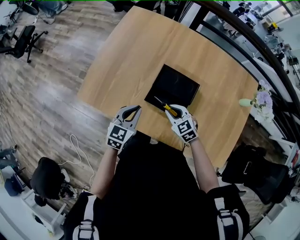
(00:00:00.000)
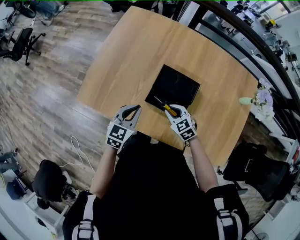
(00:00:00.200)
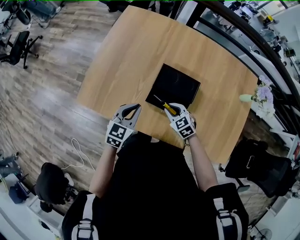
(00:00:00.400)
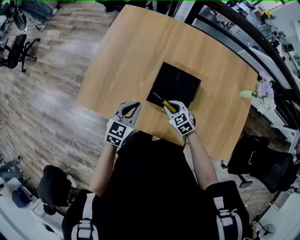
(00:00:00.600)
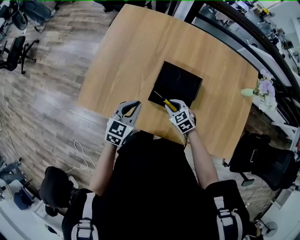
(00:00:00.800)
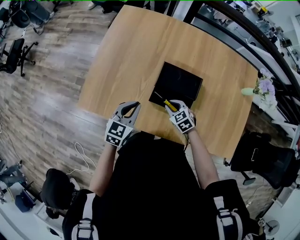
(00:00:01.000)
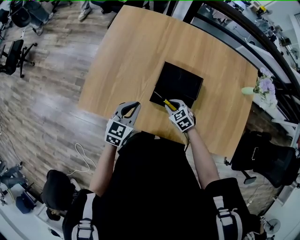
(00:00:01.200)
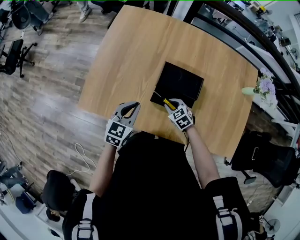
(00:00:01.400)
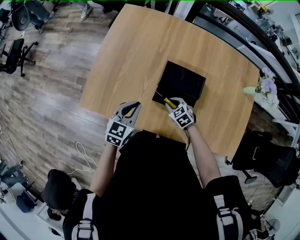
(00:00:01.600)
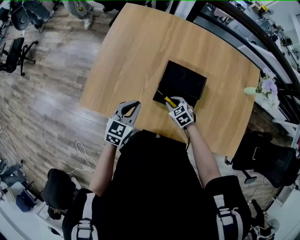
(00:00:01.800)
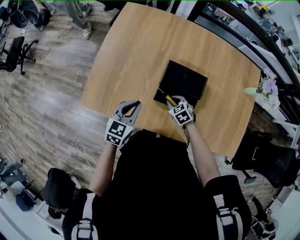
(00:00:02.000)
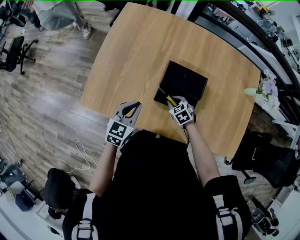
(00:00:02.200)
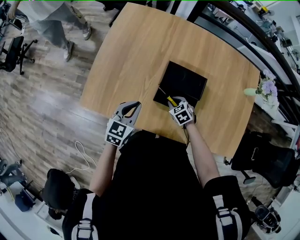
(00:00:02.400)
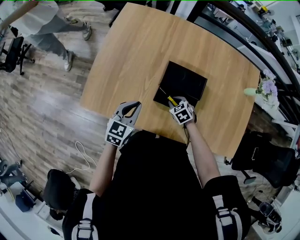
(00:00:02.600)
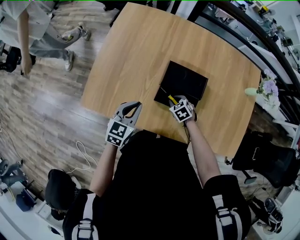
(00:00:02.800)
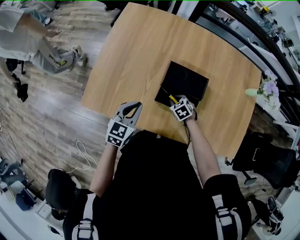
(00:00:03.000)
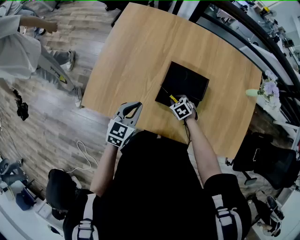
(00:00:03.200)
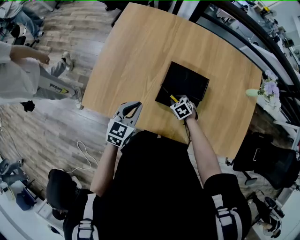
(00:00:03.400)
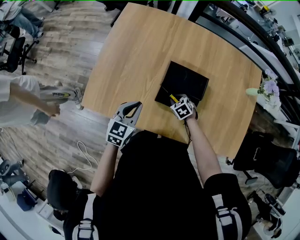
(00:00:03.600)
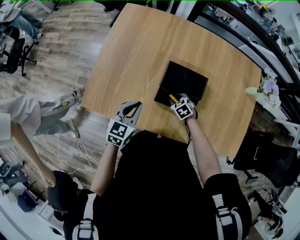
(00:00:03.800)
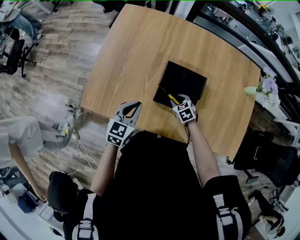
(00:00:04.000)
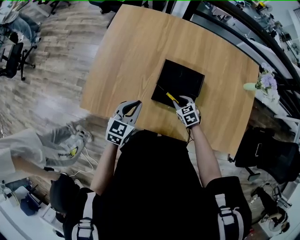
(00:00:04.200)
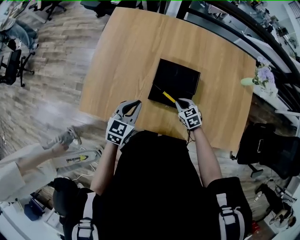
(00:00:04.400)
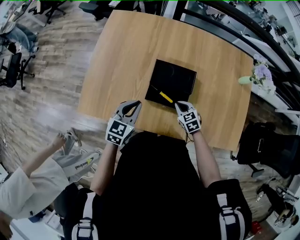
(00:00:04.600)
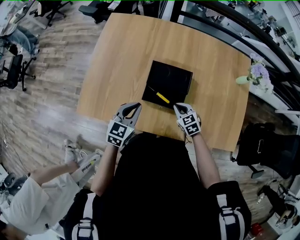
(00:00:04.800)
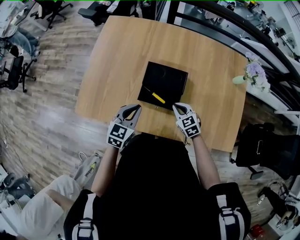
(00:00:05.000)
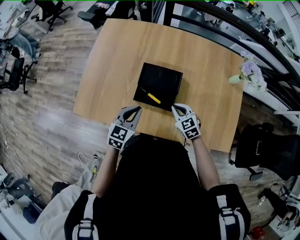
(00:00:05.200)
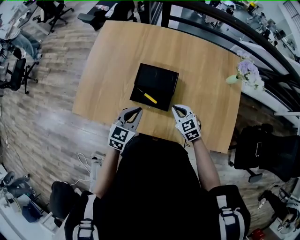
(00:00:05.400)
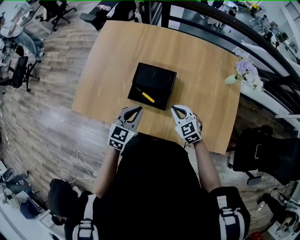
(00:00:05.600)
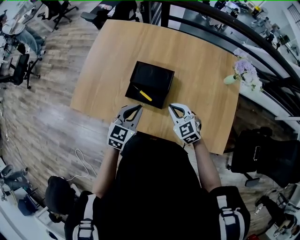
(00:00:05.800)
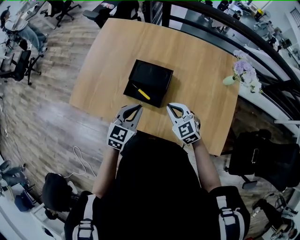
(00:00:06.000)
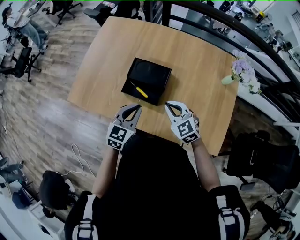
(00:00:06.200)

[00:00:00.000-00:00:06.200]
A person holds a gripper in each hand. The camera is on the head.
00:00:00.000 to 00:00:01.600: The right gripper moves downward, roughly 10 cm. The left gripper ends up some 5 cm from where it was.
00:00:01.600 to 00:00:03.200: The right gripper moves some 5 cm.
00:00:03.200 to 00:00:04.600: The right gripper goes about 10 cm to the right and upward, and changes its angle by approximately 20 degrees; the left gripper travels to the right by roughly 5 cm.
00:00:04.600 to 00:00:06.200: The left gripper shifts roughly 20 cm to the right and backward. The right gripper travels upward and to the right by some 20 cm, and rotates some 30 degrees.

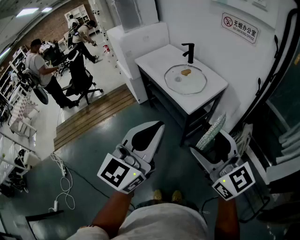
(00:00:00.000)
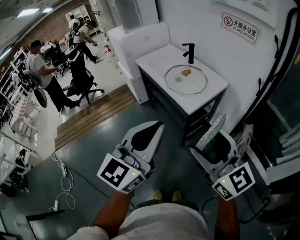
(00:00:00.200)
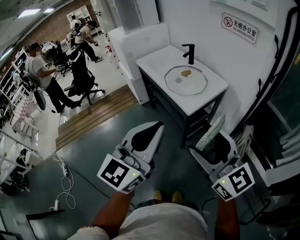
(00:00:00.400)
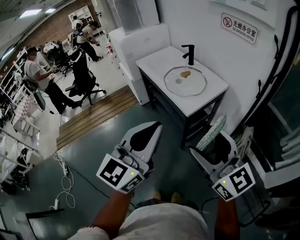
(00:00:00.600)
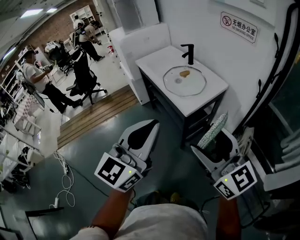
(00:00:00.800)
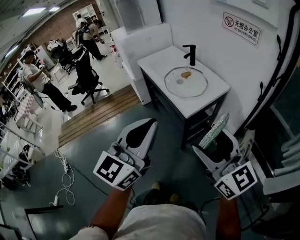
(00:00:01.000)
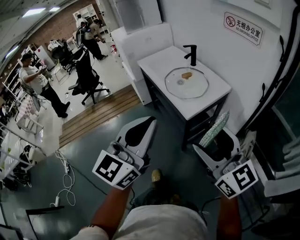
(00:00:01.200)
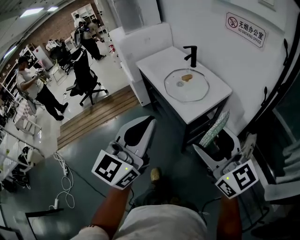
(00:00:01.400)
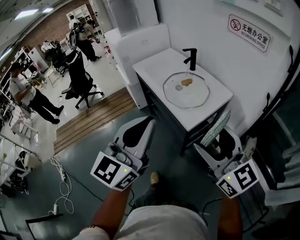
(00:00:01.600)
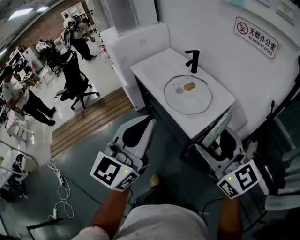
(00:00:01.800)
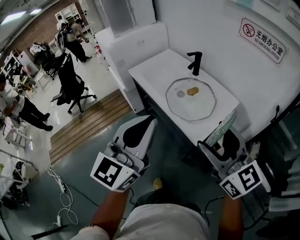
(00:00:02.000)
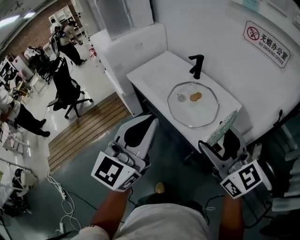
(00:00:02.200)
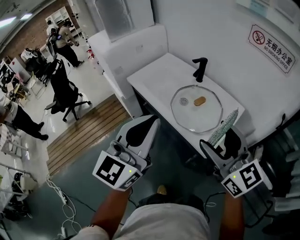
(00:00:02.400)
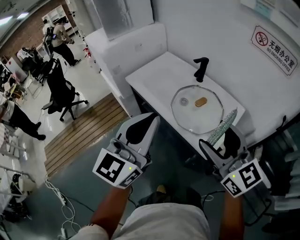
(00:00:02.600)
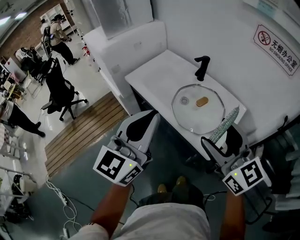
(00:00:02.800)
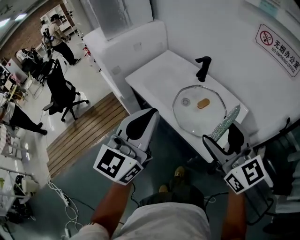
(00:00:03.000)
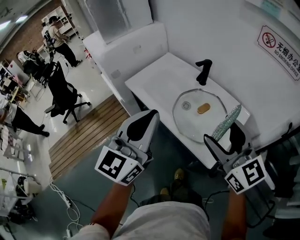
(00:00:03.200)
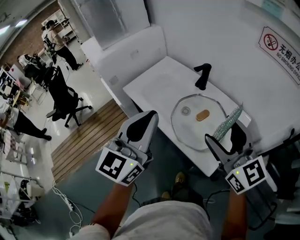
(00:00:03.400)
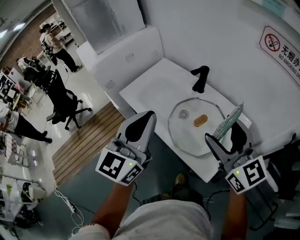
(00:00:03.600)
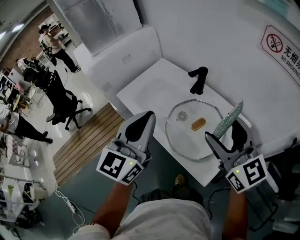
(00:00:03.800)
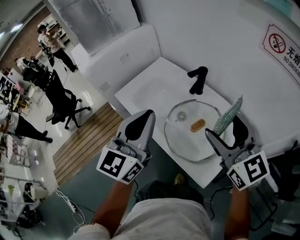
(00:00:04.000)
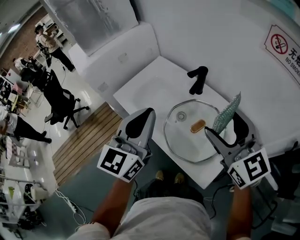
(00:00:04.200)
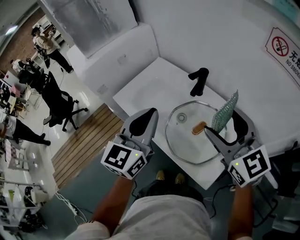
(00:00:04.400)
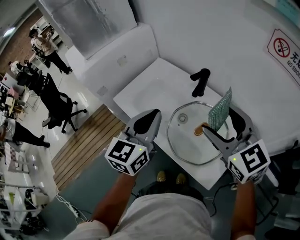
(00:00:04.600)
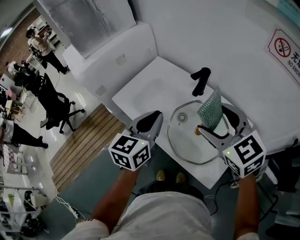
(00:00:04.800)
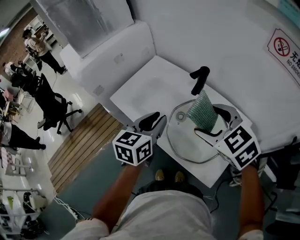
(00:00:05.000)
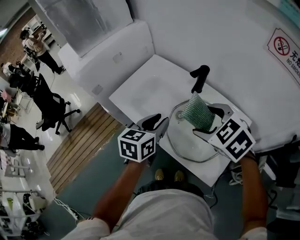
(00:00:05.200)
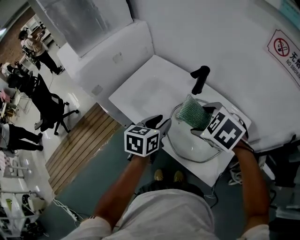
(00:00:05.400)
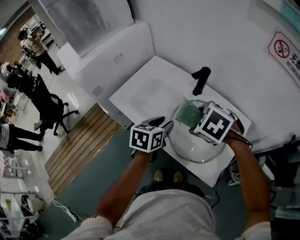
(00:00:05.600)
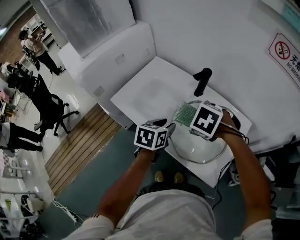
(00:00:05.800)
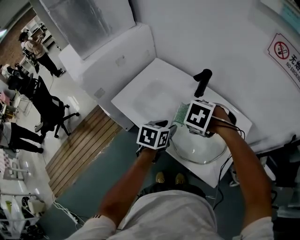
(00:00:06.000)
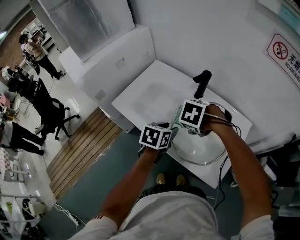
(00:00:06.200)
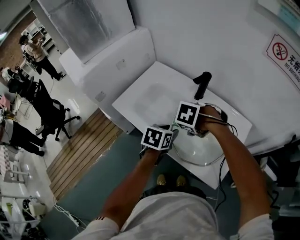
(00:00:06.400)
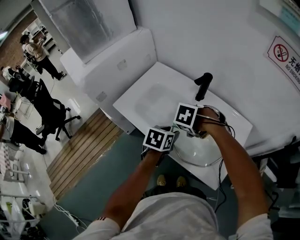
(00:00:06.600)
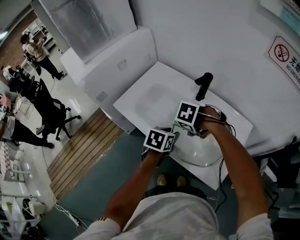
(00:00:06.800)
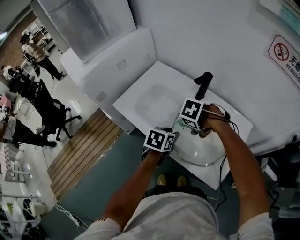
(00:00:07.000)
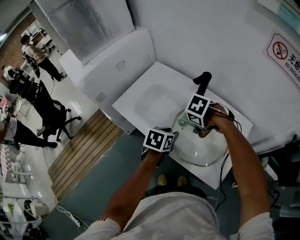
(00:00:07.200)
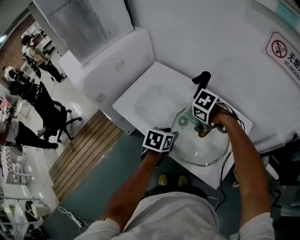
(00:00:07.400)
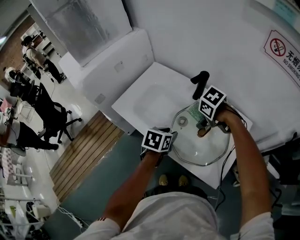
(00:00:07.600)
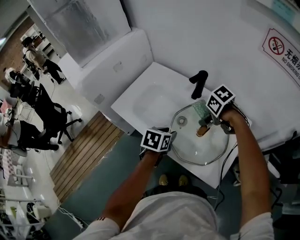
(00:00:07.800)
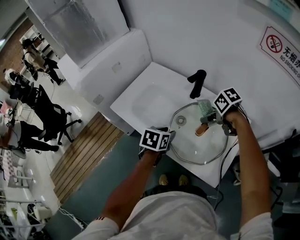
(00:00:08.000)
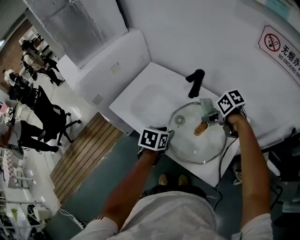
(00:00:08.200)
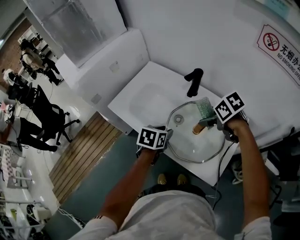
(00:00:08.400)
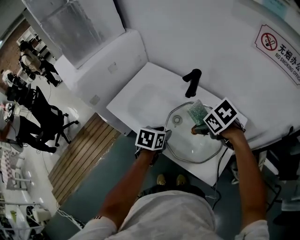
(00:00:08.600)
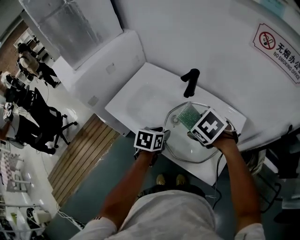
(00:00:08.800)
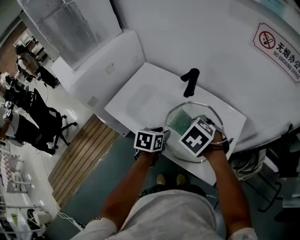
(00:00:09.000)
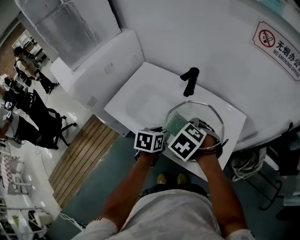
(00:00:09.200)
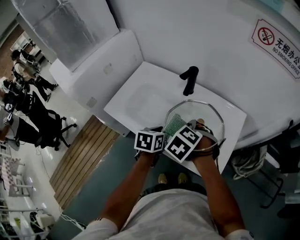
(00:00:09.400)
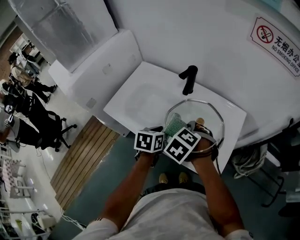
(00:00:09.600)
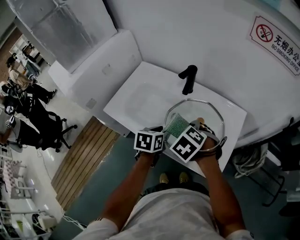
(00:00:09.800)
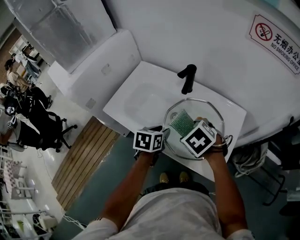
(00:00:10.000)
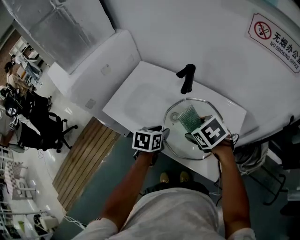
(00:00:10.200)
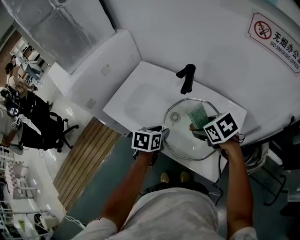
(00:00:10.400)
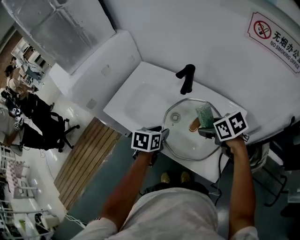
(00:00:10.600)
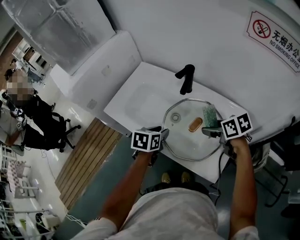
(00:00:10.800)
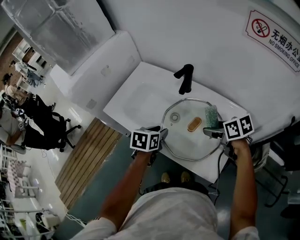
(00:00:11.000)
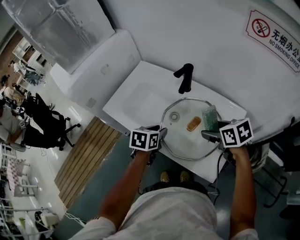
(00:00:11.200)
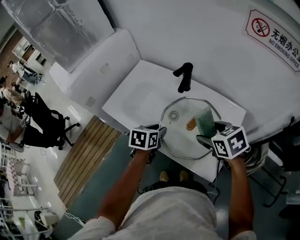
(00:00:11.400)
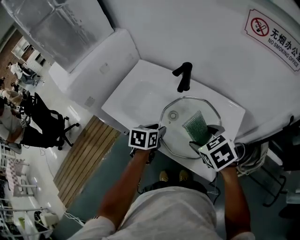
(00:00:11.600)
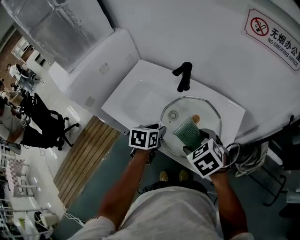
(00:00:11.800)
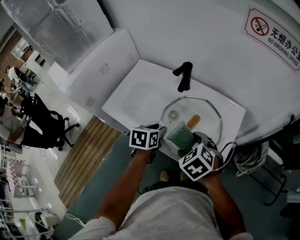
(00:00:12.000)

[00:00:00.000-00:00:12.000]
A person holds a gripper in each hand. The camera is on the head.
00:00:00.000 to 00:00:01.600: Both grippers travel together forward, some 10 cm.
00:00:01.600 to 00:00:03.000: The two grippers go approximately 25 cm forward and to the left.
00:00:03.000 to 00:00:04.400: Both grippers move forward, roughly 20 cm.
00:00:04.400 to 00:00:06.000: The grippers both shift downward by roughly 20 cm. The right gripper tips its fingers downward by some 70 degrees. Meanwhile the left gripper angles its fingers downward, by some 40 degrees, and opens its fingers.
00:00:06.000 to 00:00:07.600: The right gripper moves about 10 cm, and turns by approximately 30 degrees.
00:00:07.600 to 00:00:09.000: The right gripper shifts by some 10 cm, and turns by about 30 degrees.
00:00:09.000 to 00:00:10.400: The right gripper shifts roughly 5 cm to the right, and swivels about 30 degrees.
00:00:10.400 to 00:00:12.000: The right gripper travels backward and to the left by some 10 cm, and changes its angle by about 20 degrees.

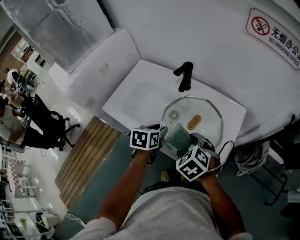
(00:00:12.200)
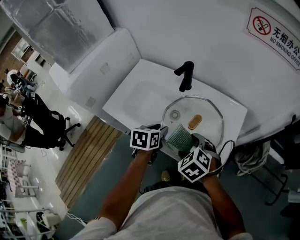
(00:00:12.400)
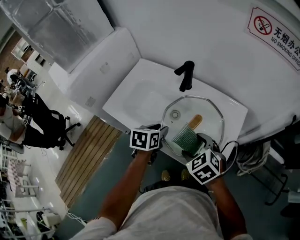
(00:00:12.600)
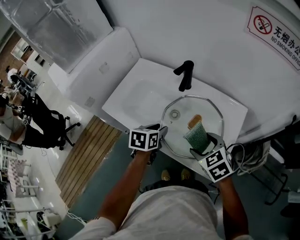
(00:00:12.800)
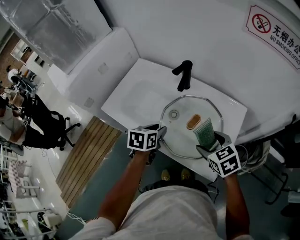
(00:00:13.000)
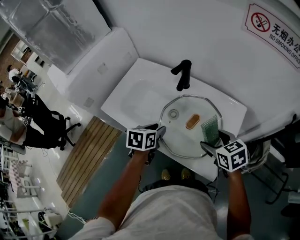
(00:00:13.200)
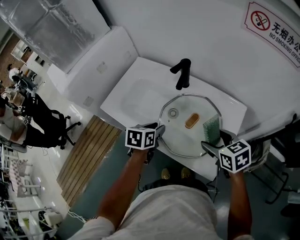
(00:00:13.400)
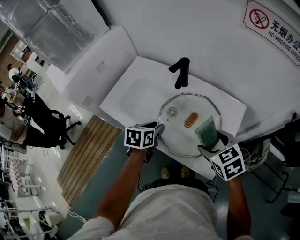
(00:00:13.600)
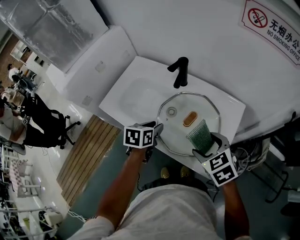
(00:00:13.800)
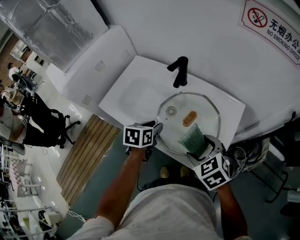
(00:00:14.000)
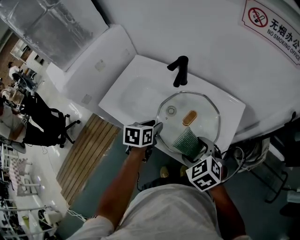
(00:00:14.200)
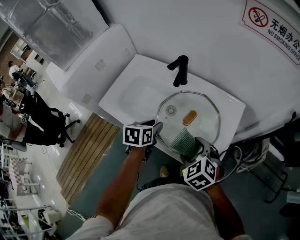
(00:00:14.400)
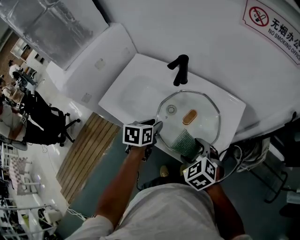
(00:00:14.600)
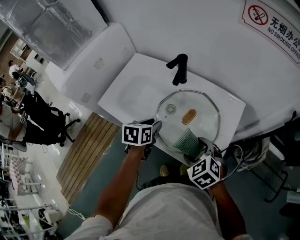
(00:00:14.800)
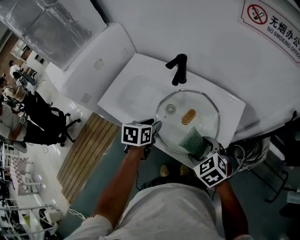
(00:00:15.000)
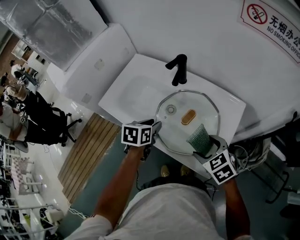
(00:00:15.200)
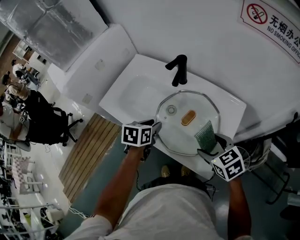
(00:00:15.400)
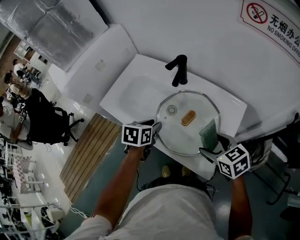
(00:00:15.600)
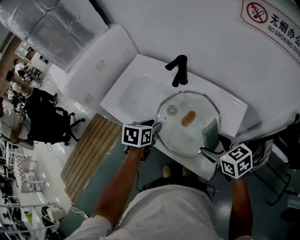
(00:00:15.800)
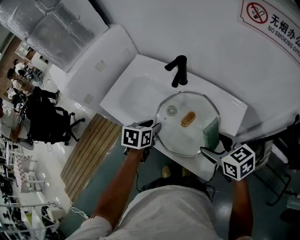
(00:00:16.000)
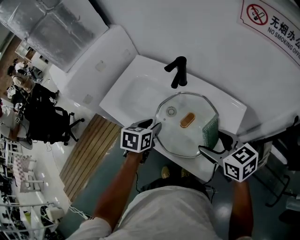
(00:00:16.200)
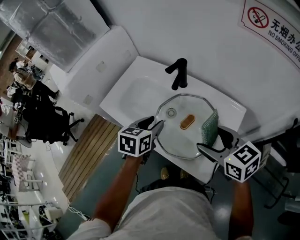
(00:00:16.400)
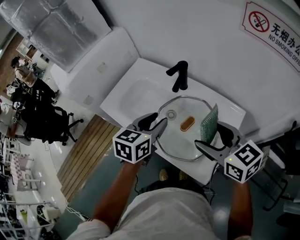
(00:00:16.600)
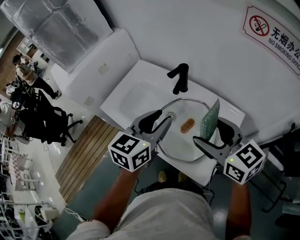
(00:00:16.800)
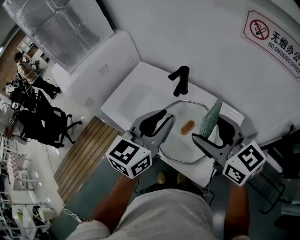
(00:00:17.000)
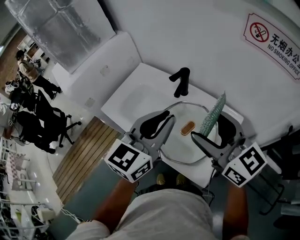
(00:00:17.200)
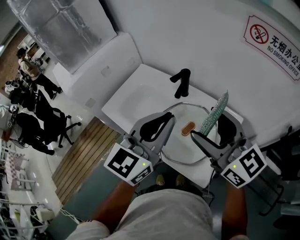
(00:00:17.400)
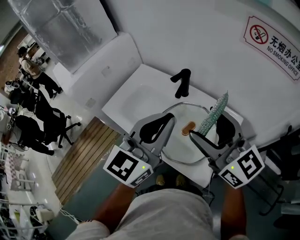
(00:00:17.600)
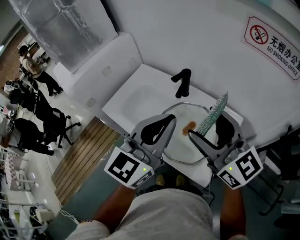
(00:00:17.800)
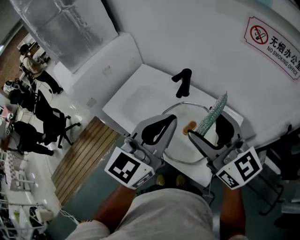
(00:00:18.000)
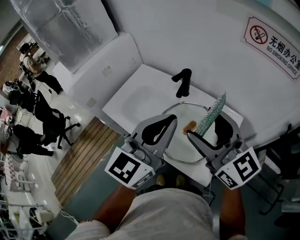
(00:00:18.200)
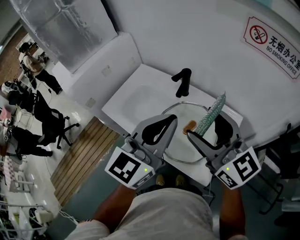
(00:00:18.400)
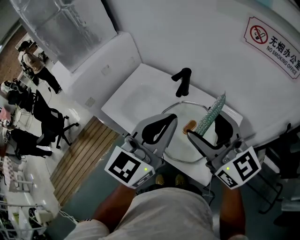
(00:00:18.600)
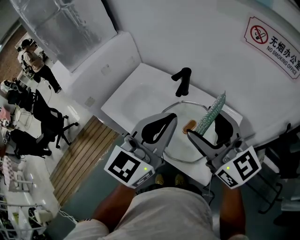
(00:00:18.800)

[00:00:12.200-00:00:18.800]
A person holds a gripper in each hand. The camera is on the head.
00:00:12.200 to 00:00:13.800: The right gripper is displaced to the right by roughly 10 cm.
00:00:15.400 to 00:00:17.200: Both grippers travel together upward, approximately 25 cm. The left gripper angles its fingers upward, by roughly 40 degrees, and closes its fingers; the right gripper tips its fingers upward by some 40 degrees.
00:00:17.200 to 00:00:18.800: The grippers move only a little.
